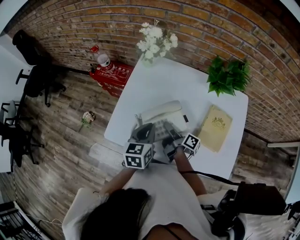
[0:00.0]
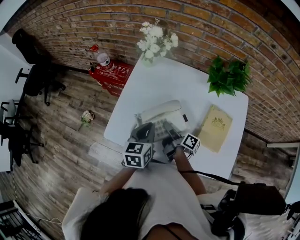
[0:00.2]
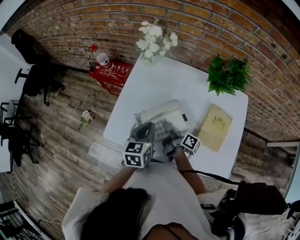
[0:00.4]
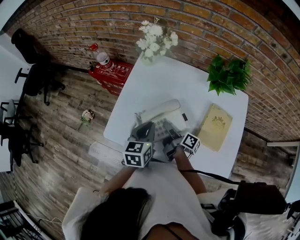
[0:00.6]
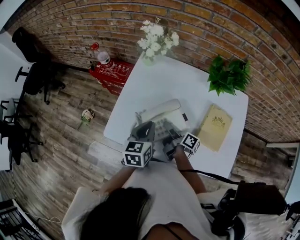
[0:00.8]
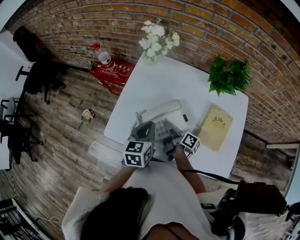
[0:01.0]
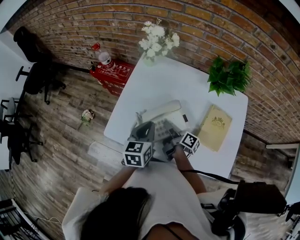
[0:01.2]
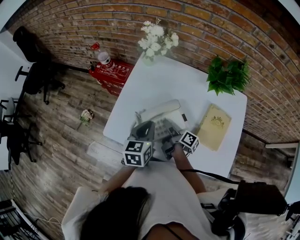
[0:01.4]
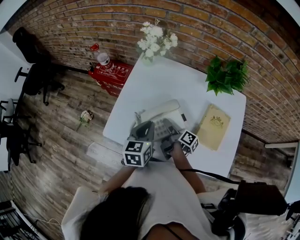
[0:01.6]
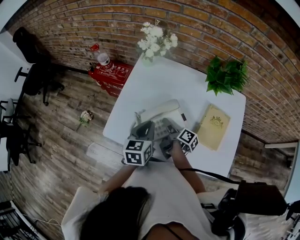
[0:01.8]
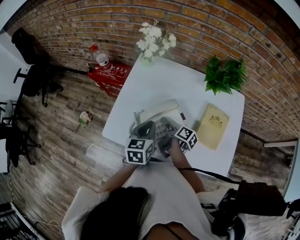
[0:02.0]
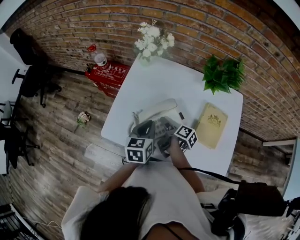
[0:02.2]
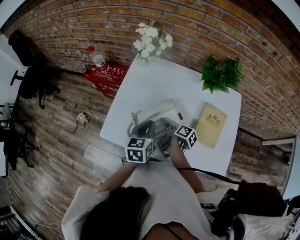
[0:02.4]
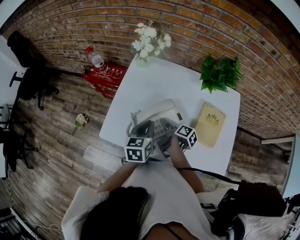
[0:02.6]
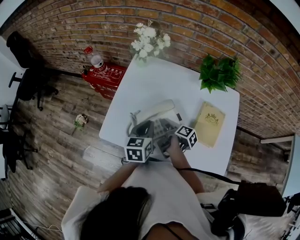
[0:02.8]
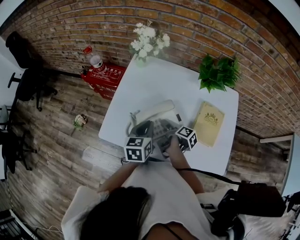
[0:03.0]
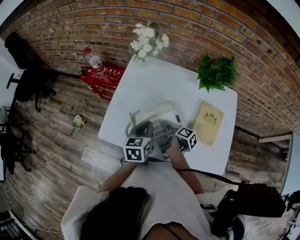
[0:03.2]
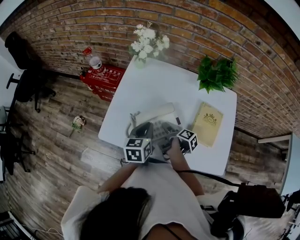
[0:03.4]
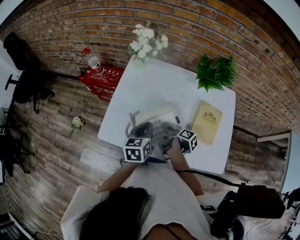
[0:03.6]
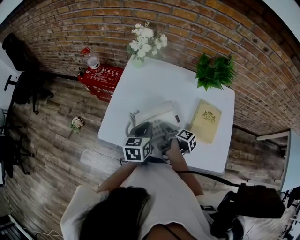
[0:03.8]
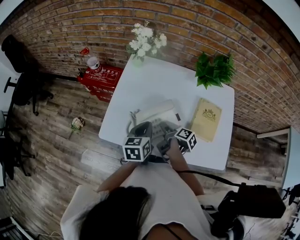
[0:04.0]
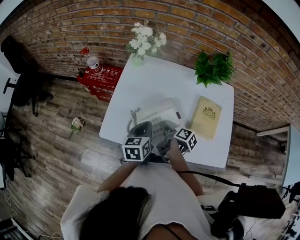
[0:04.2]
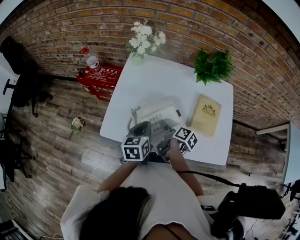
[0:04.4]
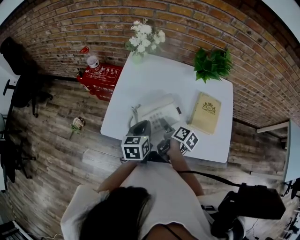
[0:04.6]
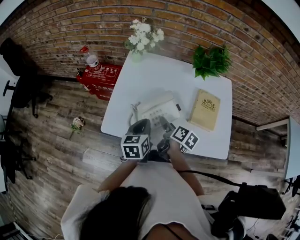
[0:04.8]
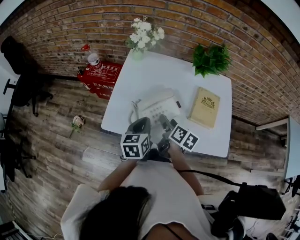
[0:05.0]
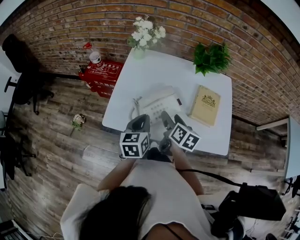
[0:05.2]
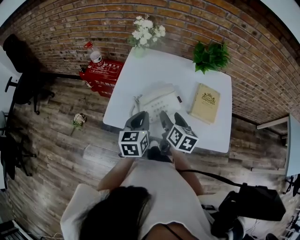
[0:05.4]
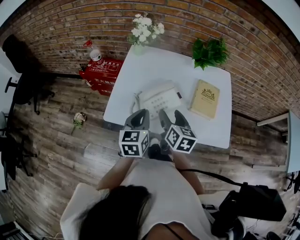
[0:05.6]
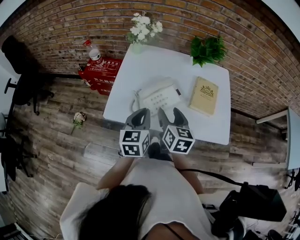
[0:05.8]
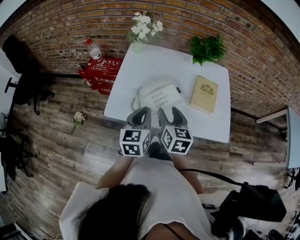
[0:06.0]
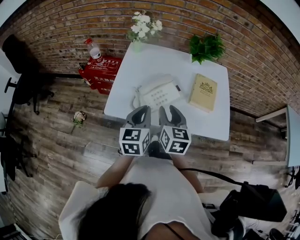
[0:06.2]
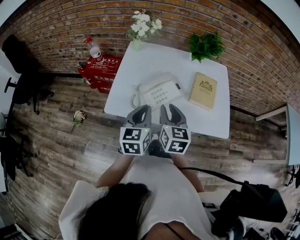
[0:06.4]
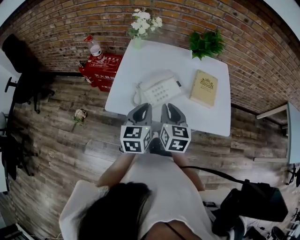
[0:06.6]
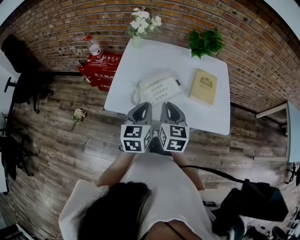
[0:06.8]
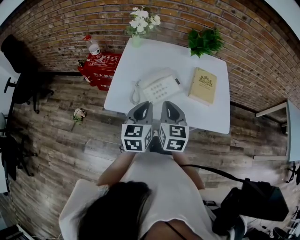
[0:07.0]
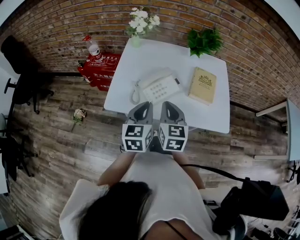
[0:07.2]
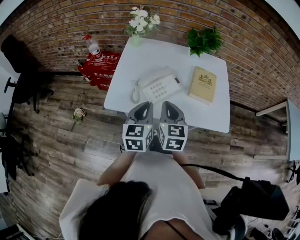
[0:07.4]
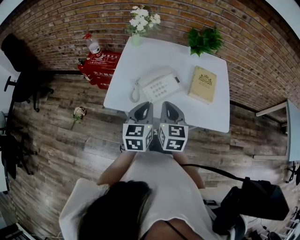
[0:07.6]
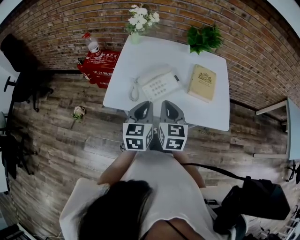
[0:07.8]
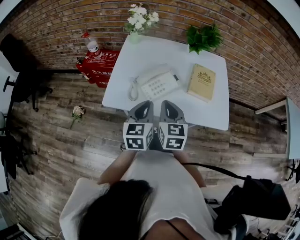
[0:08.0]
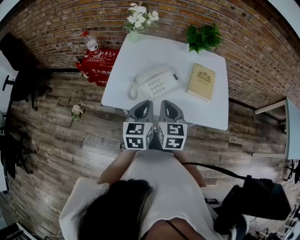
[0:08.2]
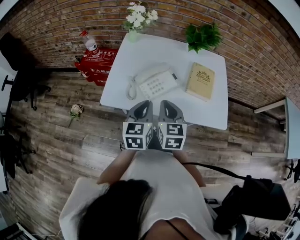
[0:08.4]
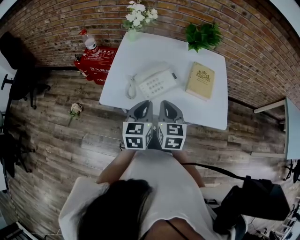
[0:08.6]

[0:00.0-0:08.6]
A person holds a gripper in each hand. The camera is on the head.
0:04.4 to 0:05.8: The left gripper moves some 10 cm.

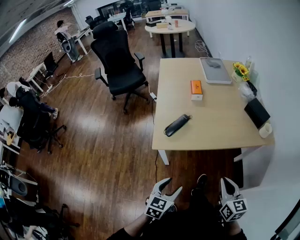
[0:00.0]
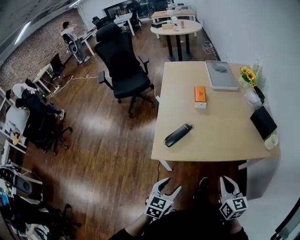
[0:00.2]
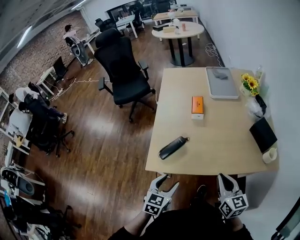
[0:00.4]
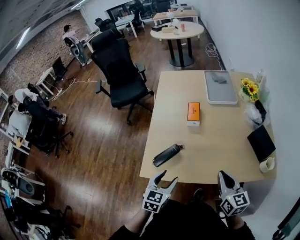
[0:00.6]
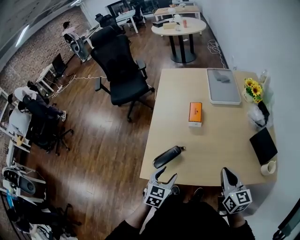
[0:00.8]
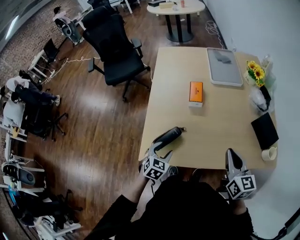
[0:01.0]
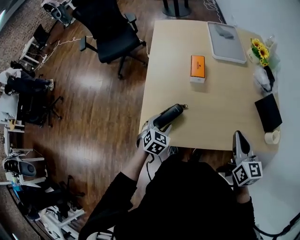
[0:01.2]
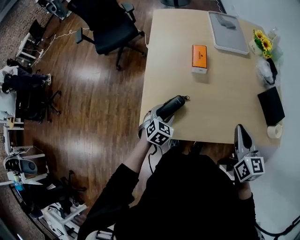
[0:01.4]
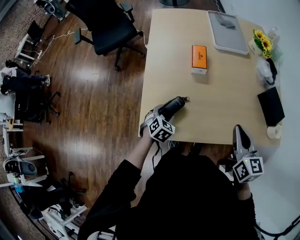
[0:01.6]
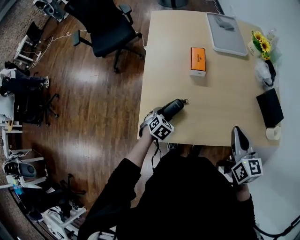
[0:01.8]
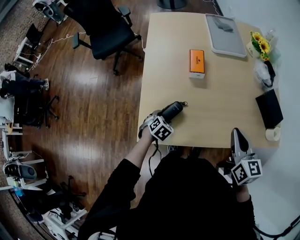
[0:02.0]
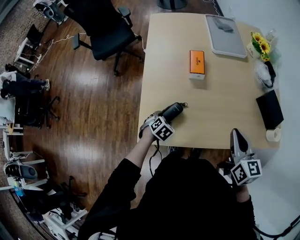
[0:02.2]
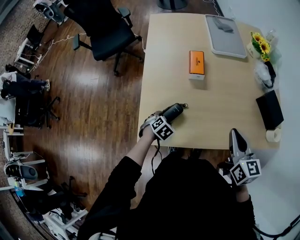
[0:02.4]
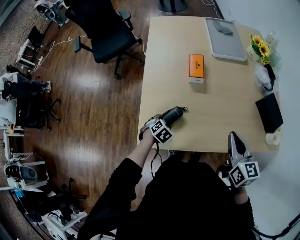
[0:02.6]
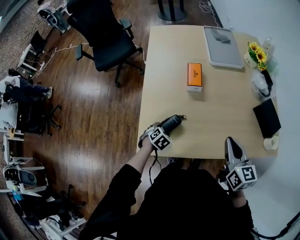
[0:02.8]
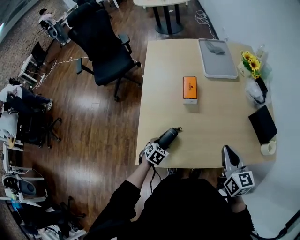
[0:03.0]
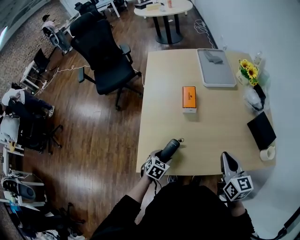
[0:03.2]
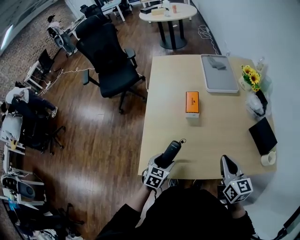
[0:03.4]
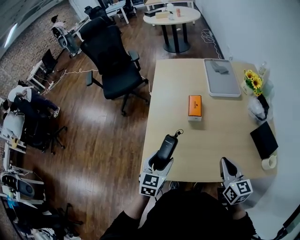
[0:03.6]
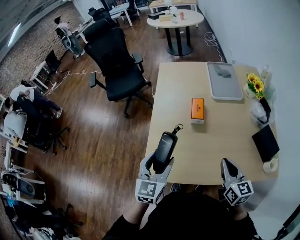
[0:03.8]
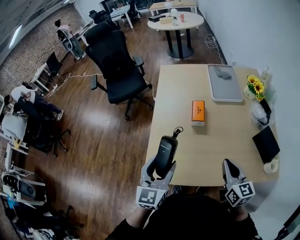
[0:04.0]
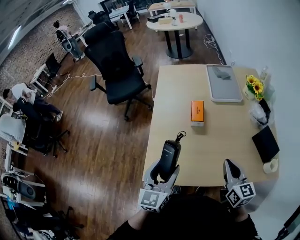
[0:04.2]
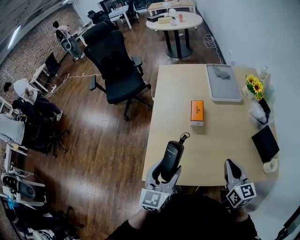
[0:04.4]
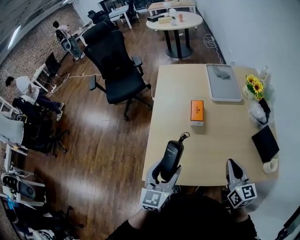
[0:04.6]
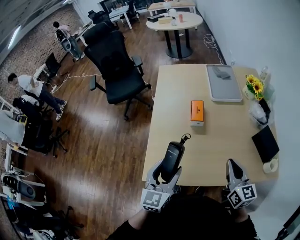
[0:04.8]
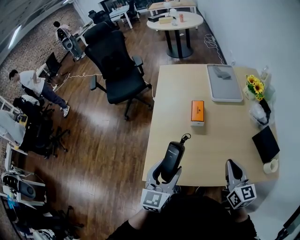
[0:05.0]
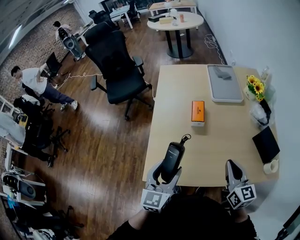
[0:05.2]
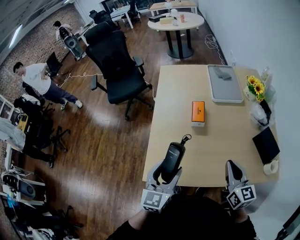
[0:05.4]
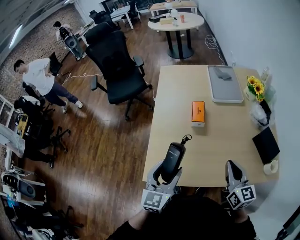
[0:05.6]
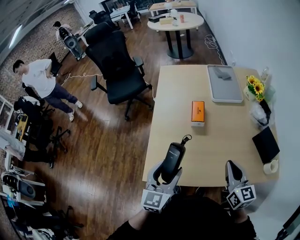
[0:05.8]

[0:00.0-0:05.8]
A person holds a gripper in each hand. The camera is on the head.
0:00.0 to 0:01.4: The two grippers go roughly 35 cm forward. The left gripper turns by roughly 30 degrees.
0:01.4 to 0:02.8: The left gripper is displaced downward by some 10 cm, and swivels some 20 degrees.
0:02.8 to 0:04.4: The left gripper travels upward by roughly 30 cm, and tilts its fingers approximately 60 degrees upward.
0:04.4 to 0:05.8: Both grippers stay about where they are.

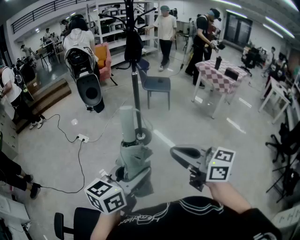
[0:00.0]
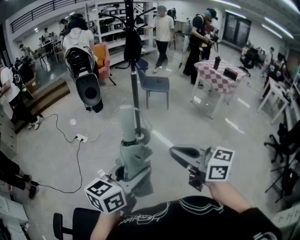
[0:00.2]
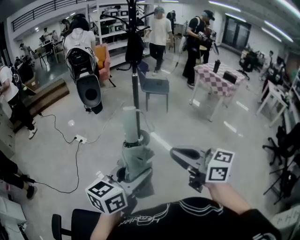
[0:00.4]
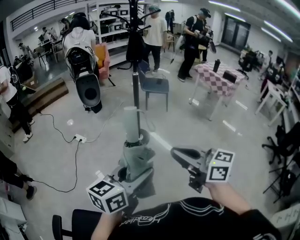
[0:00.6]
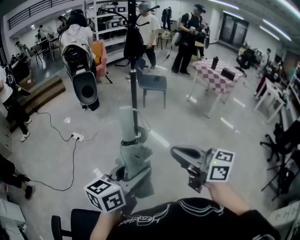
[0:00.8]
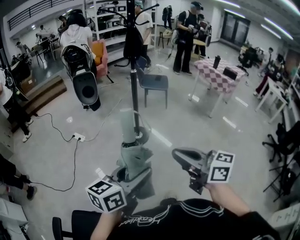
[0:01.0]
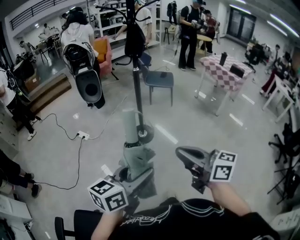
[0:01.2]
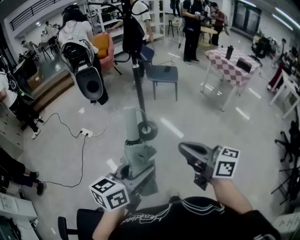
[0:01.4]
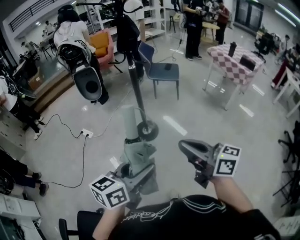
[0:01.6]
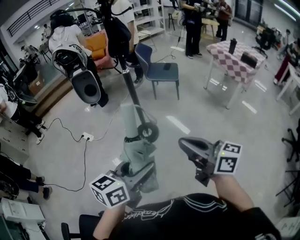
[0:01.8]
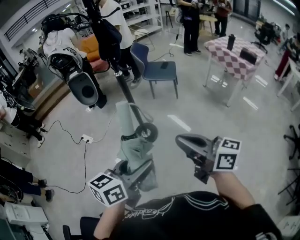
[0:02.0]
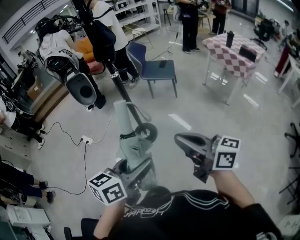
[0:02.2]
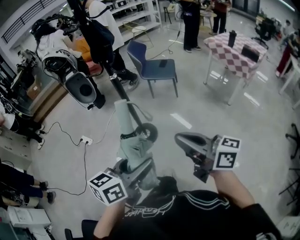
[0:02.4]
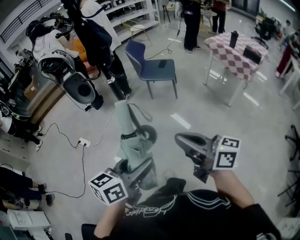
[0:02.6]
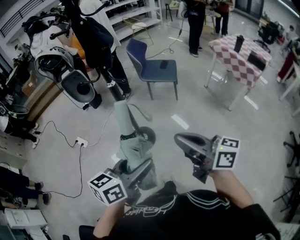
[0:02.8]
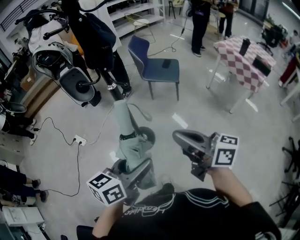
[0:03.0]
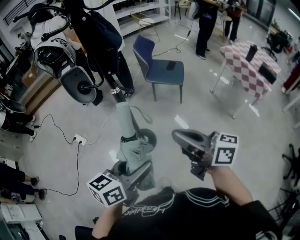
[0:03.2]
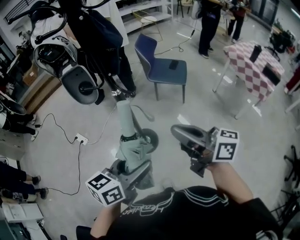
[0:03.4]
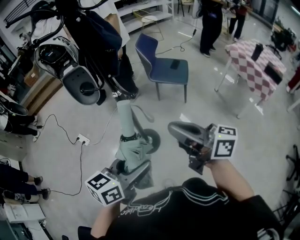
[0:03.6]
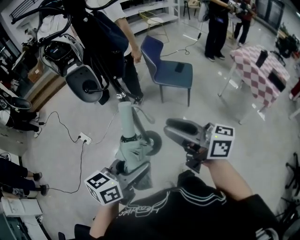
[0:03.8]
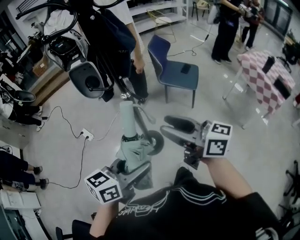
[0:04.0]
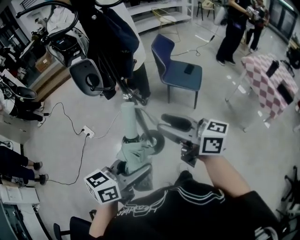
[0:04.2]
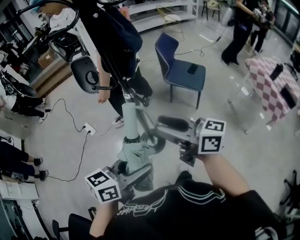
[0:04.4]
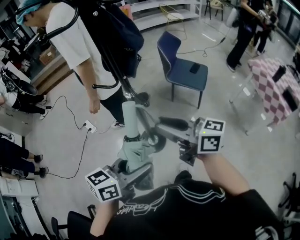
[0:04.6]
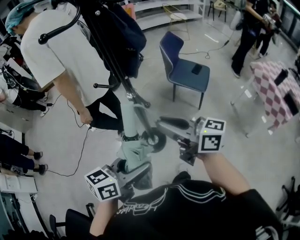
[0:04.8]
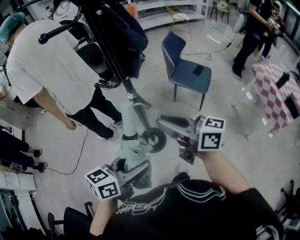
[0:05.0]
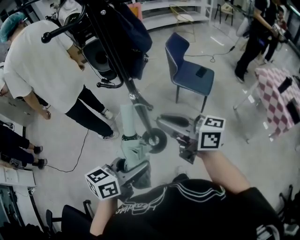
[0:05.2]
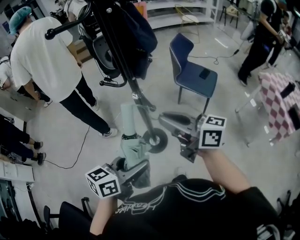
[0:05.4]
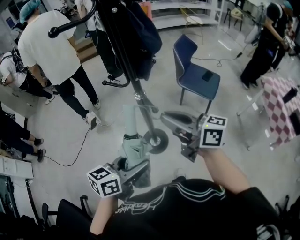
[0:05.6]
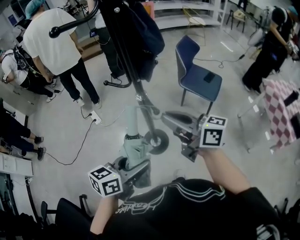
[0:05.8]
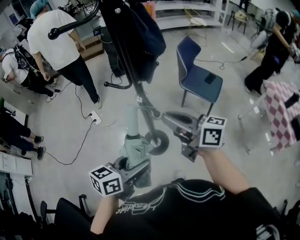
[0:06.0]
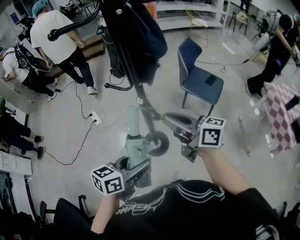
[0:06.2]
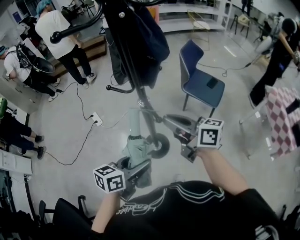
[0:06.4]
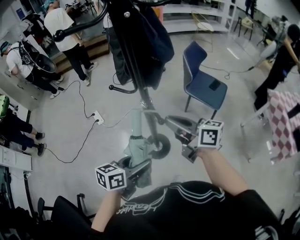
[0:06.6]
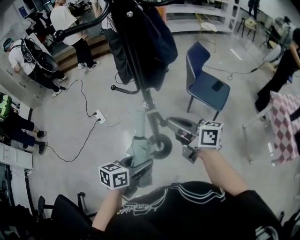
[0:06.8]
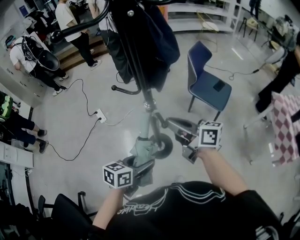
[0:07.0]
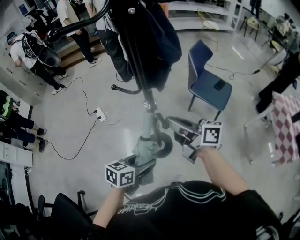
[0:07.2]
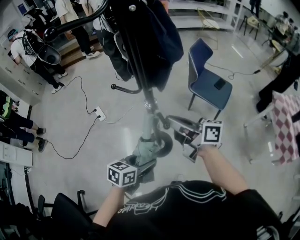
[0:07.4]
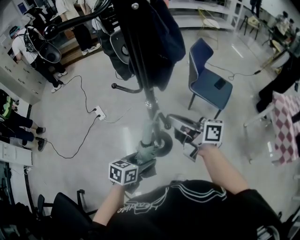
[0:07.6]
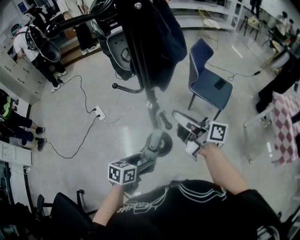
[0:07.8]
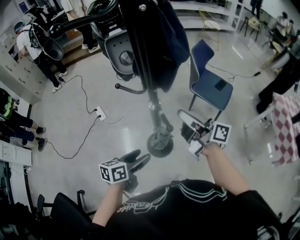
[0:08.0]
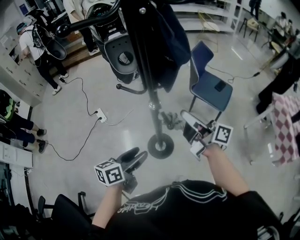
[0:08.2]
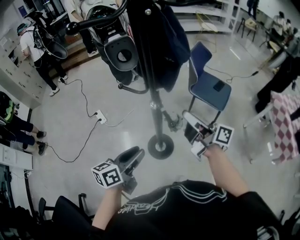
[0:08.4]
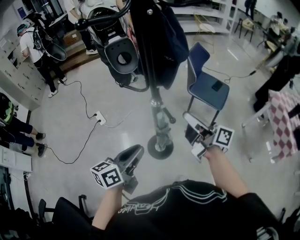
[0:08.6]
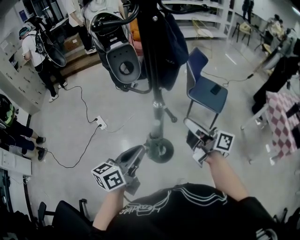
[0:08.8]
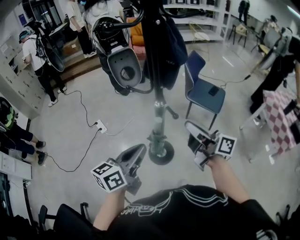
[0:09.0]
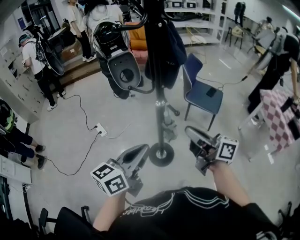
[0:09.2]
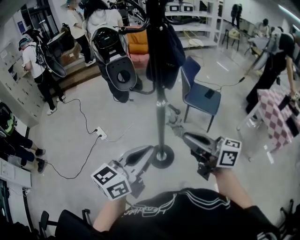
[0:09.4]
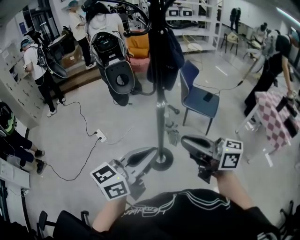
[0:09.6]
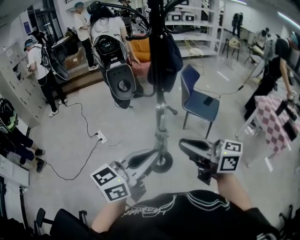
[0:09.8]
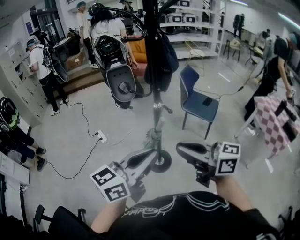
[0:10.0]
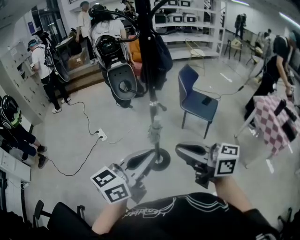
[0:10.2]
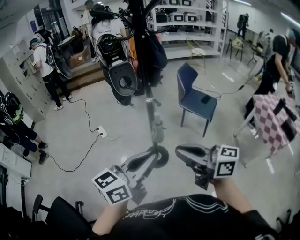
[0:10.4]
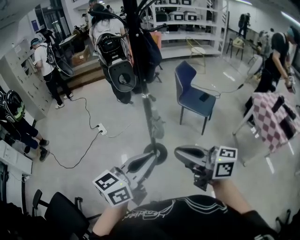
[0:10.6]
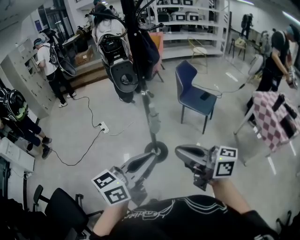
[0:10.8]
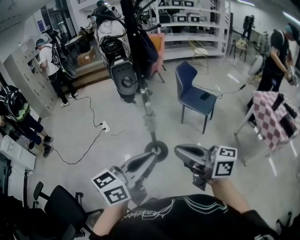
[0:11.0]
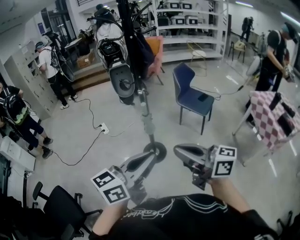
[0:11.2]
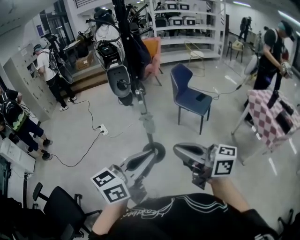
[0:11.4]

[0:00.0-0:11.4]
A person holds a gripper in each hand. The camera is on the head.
0:00.0 to 0:01.4: The left gripper goes approximately 10 cm forward; the right gripper heads forward and to the right, covering approximately 15 cm.
0:01.4 to 0:02.8: The grippers both shift forward and to the right by approximately 30 cm.
0:02.8 to 0:04.2: The right gripper is displaced forward by approximately 20 cm, and opens up; the left gripper heads forward, covering approximately 15 cm.
0:04.2 to 0:05.6: The left gripper changes place by some 5 cm. The right gripper shifts roughly 5 cm forward, and closes its fingers.
0:05.6 to 0:07.2: The right gripper travels forward and downward by some 10 cm. Meanwhile the left gripper is displaced downward by roughly 10 cm.
0:07.2 to 0:08.6: The left gripper goes some 10 cm upward and to the left, swivels about 20 degrees, and closes its fingers.
0:08.6 to 0:10.0: The right gripper is displaced backward and upward by some 25 cm, and rotates about 30 degrees. Meanwhile the left gripper is displaced upward and backward by approximately 25 cm, and turns by approximately 30 degrees.
0:10.0 to 0:11.4: The grippers both shift backward and to the right by about 20 cm.
